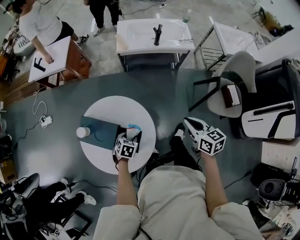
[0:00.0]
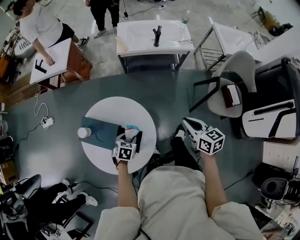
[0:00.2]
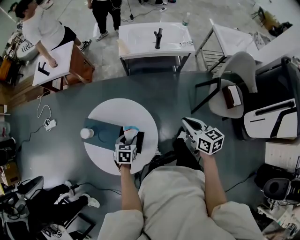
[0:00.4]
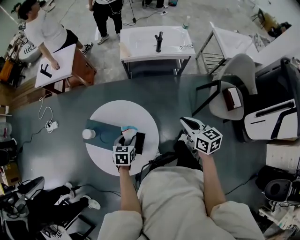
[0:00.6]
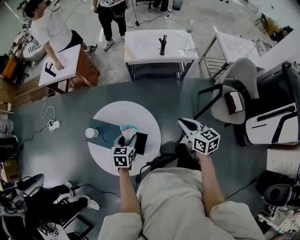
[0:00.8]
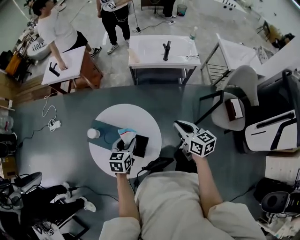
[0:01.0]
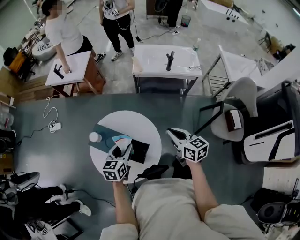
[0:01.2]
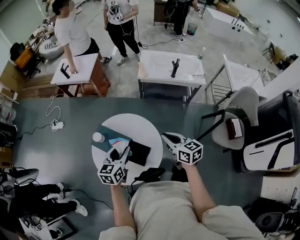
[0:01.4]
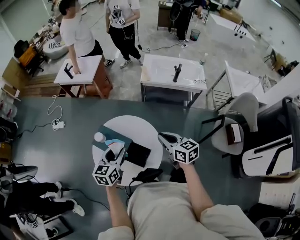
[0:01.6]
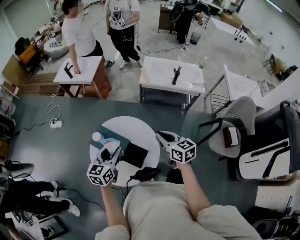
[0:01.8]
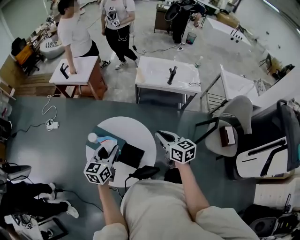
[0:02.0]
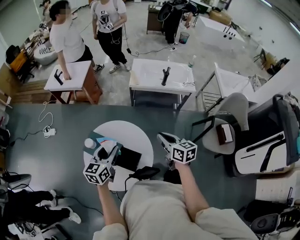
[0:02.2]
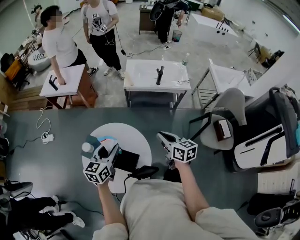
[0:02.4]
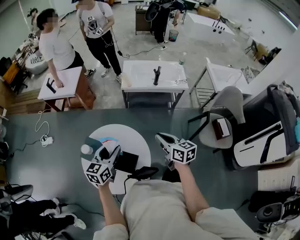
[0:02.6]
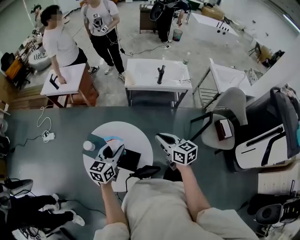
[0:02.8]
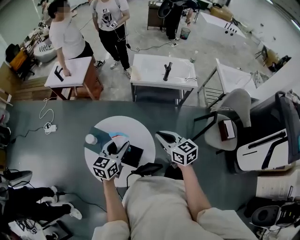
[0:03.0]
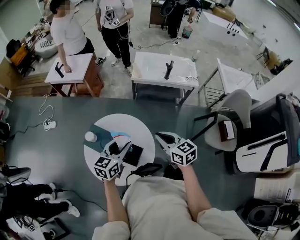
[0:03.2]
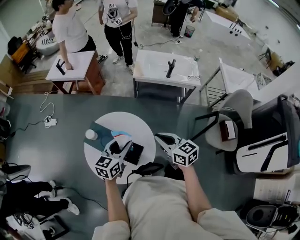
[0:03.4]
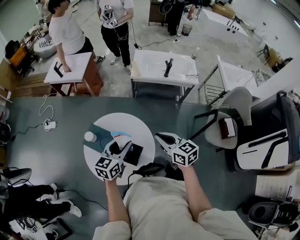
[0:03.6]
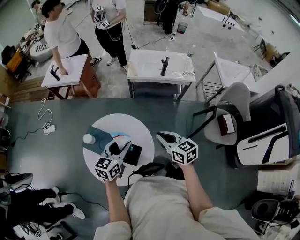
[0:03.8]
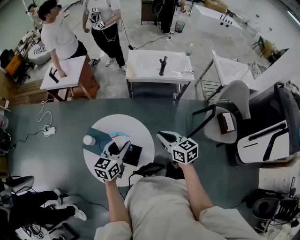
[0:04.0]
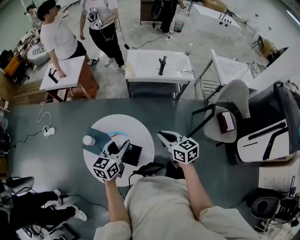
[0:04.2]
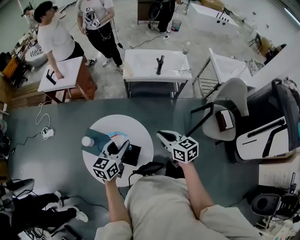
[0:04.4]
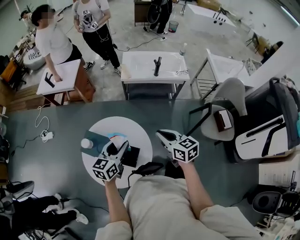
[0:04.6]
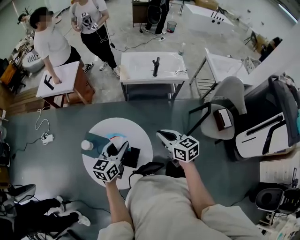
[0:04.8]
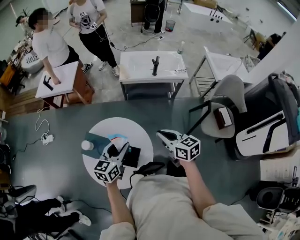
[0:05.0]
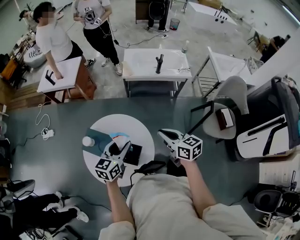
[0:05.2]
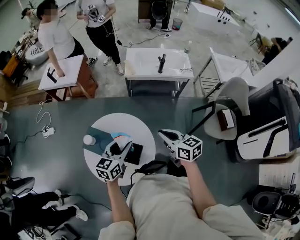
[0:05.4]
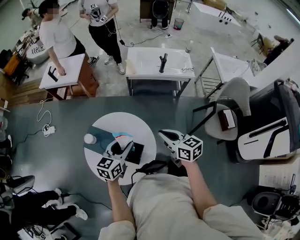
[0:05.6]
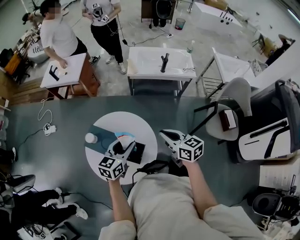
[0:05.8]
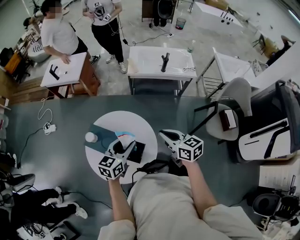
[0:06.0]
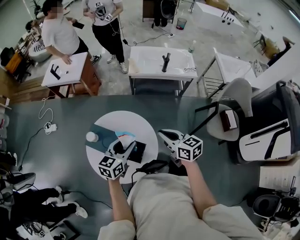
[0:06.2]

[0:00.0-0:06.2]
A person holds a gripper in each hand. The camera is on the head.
0:00.0 to 0:01.6: The right gripper goes some 20 cm to the left, and turns by approximately 20 degrees. The left gripper moves upward and to the left, about 30 cm, and tilts its fingers roughly 40 degrees upward.
0:01.6 to 0:03.2: The right gripper travels to the right and back again, approximately 10 cm each way, while the left gripper goes approximately 5 cm to the right.
0:03.2 to 0:06.2: The grippers make only small movements.

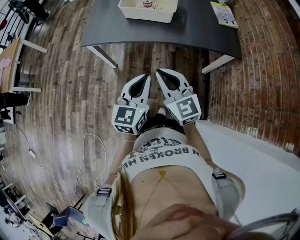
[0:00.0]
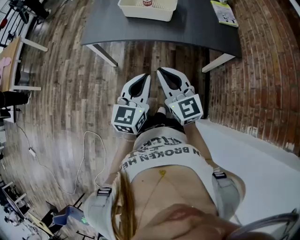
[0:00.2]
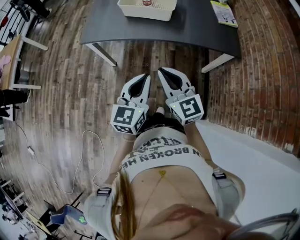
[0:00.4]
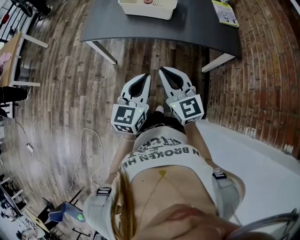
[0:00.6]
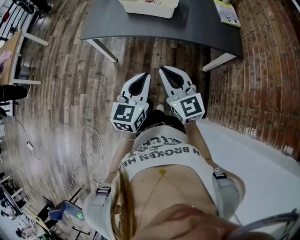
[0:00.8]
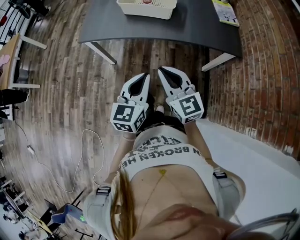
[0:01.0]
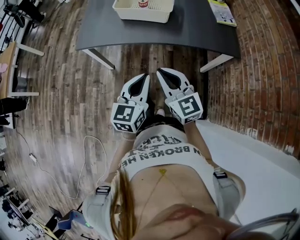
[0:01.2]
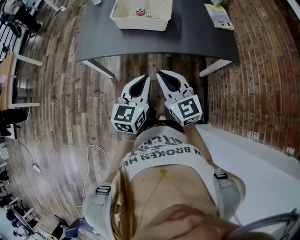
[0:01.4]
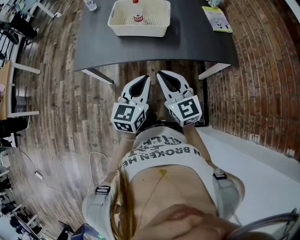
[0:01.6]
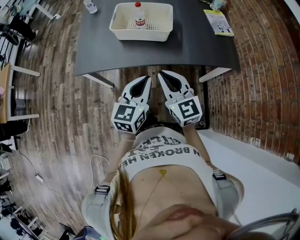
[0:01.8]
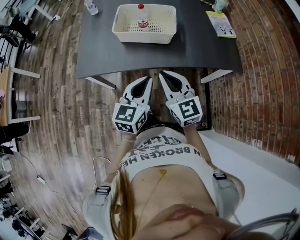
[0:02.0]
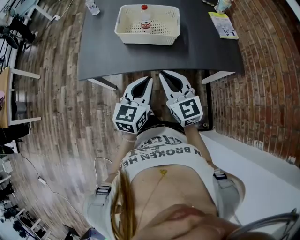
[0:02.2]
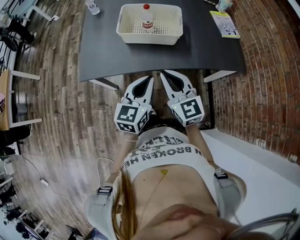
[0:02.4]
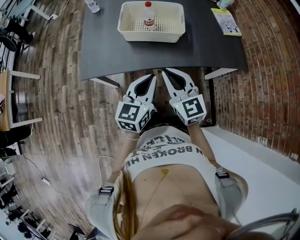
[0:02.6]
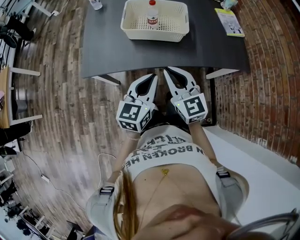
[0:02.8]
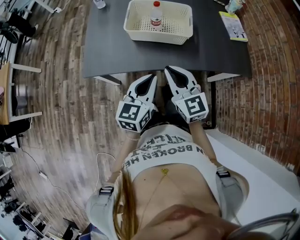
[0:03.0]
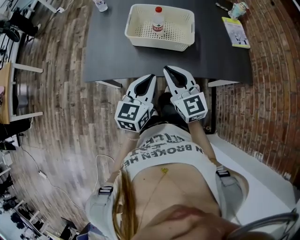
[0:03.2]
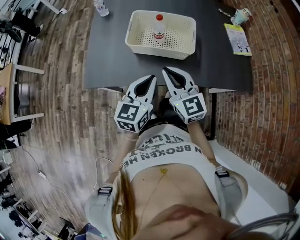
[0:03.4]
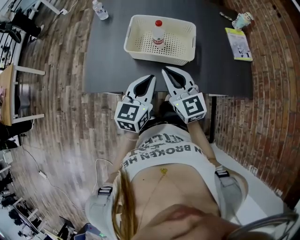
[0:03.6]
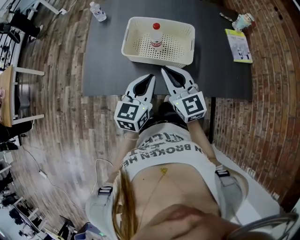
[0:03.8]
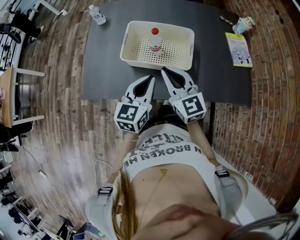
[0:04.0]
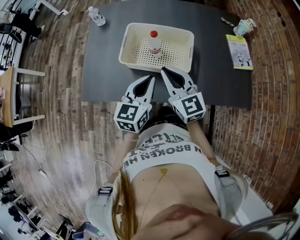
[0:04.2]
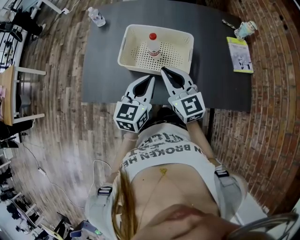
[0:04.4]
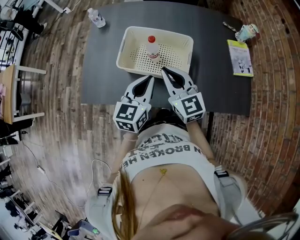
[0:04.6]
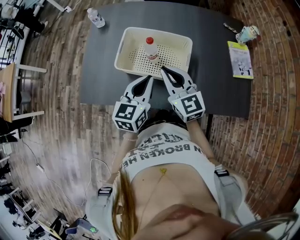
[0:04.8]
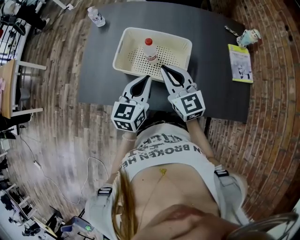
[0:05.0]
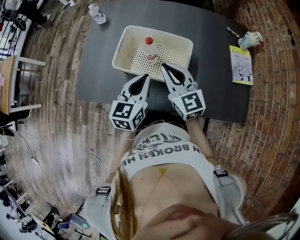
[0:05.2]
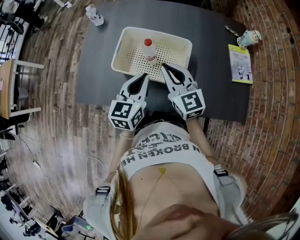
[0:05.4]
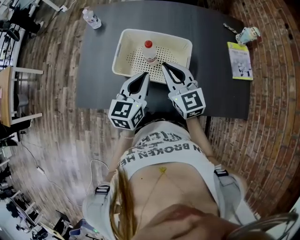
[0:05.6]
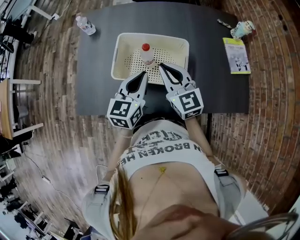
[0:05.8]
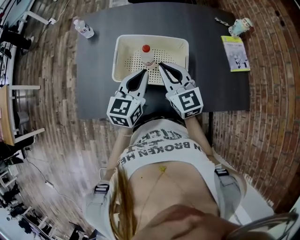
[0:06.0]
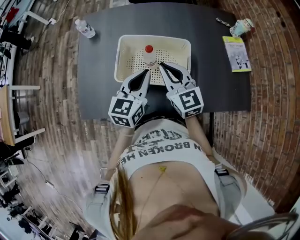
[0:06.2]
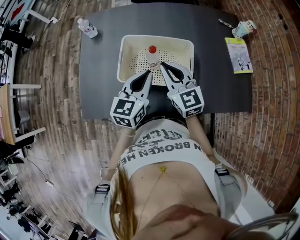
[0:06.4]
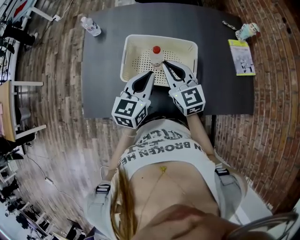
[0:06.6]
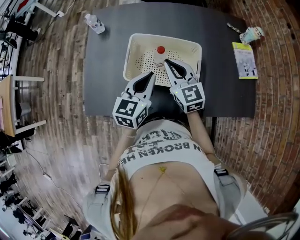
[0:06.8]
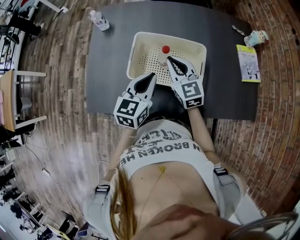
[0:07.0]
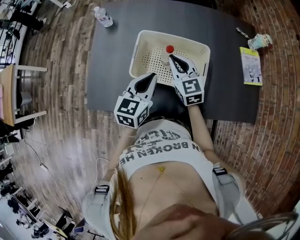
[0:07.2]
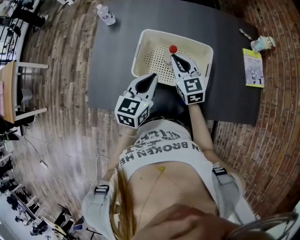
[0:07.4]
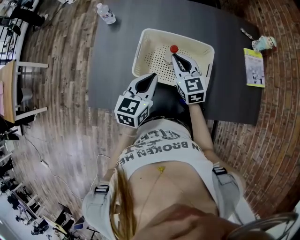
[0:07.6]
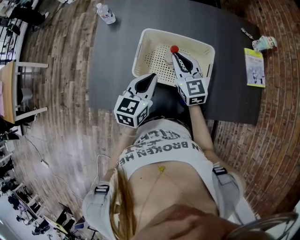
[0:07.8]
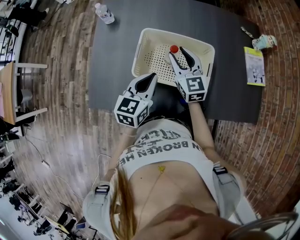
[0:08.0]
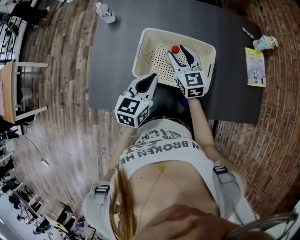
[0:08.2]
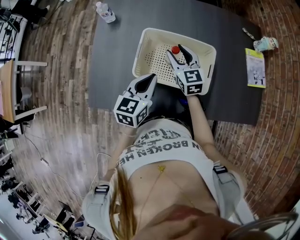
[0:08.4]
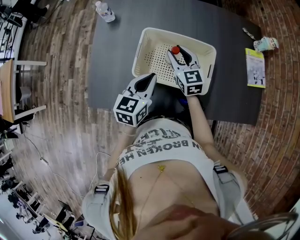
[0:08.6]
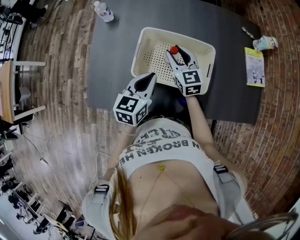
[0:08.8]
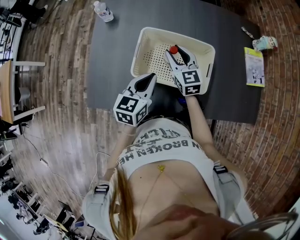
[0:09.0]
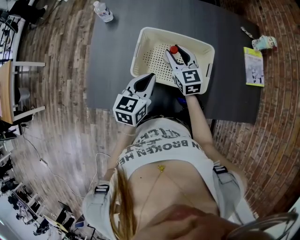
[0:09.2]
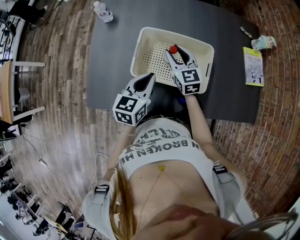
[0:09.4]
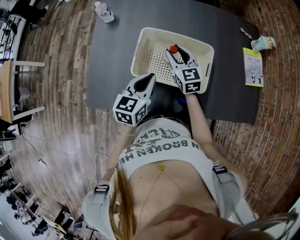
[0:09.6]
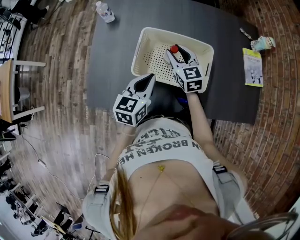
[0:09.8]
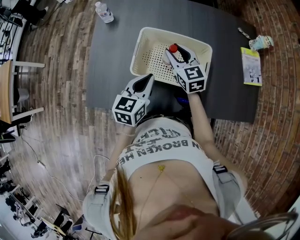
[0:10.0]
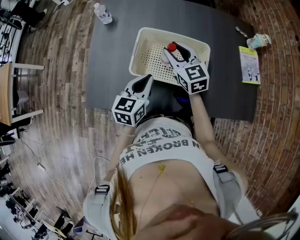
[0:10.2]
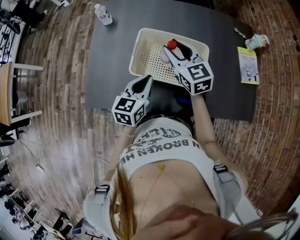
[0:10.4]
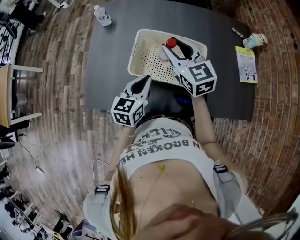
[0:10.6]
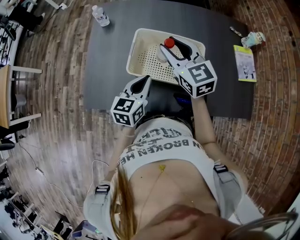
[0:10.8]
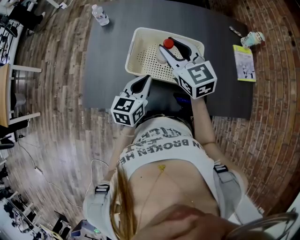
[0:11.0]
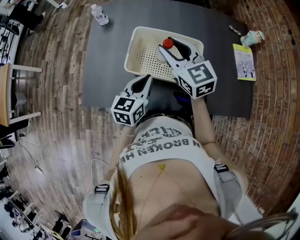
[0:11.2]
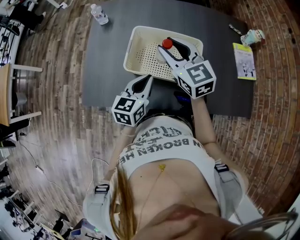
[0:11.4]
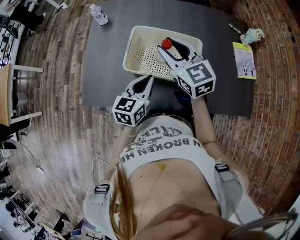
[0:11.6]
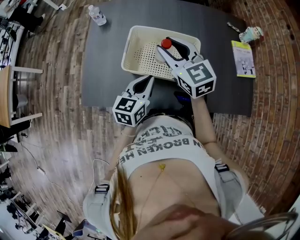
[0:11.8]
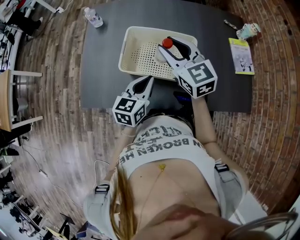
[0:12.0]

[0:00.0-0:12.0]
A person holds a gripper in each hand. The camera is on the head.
0:00.0 to 0:01.6: Both grippers travel together forward, about 15 cm.
0:01.6 to 0:03.0: Both grippers move forward and to the left, approximately 15 cm.
0:03.0 to 0:04.4: Both grippers move forward, approximately 20 cm.
0:04.4 to 0:06.0: The grippers both shift forward by approximately 10 cm.
0:06.0 to 0:07.6: The left gripper travels to the left by some 5 cm, while the right gripper heads downward and forward, covering approximately 10 cm.
0:07.6 to 0:09.0: The right gripper opens its fingers.
0:09.0 to 0:10.4: The right gripper heads upward, covering approximately 10 cm.
0:10.4 to 0:12.0: The right gripper changes place by roughly 10 cm. The left gripper heads to the right, covering approximately 5 cm.

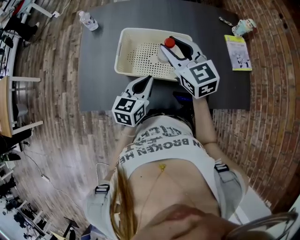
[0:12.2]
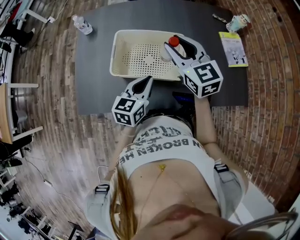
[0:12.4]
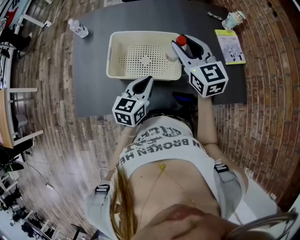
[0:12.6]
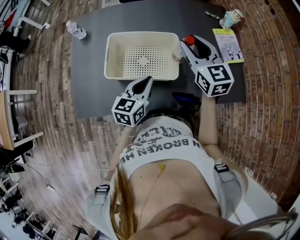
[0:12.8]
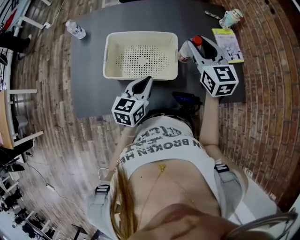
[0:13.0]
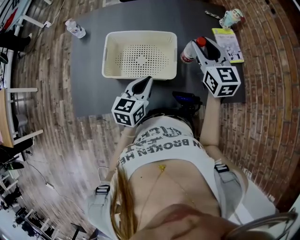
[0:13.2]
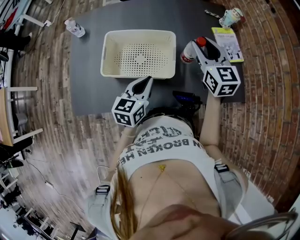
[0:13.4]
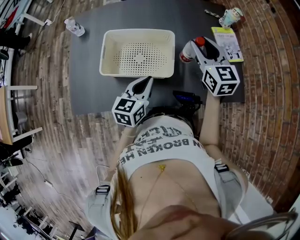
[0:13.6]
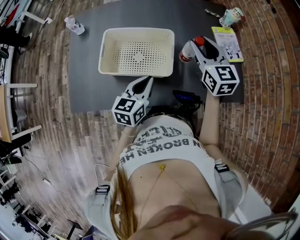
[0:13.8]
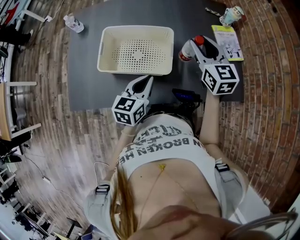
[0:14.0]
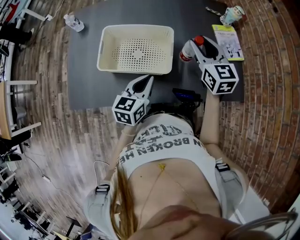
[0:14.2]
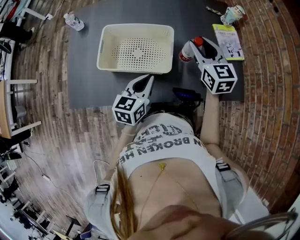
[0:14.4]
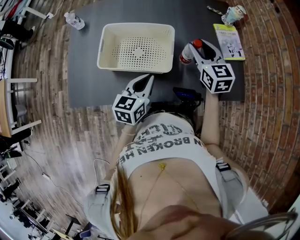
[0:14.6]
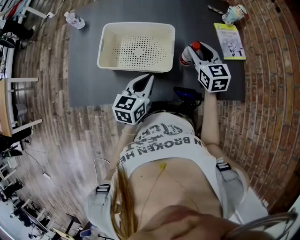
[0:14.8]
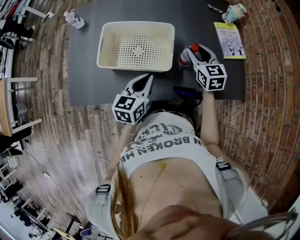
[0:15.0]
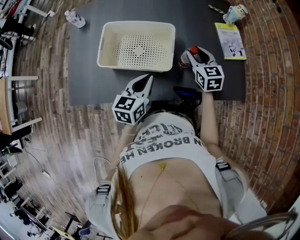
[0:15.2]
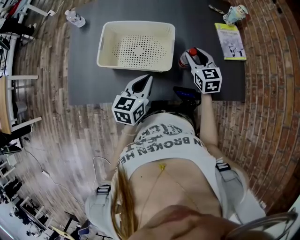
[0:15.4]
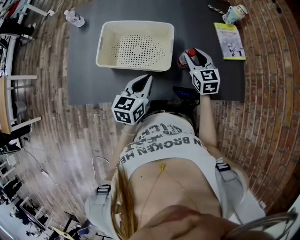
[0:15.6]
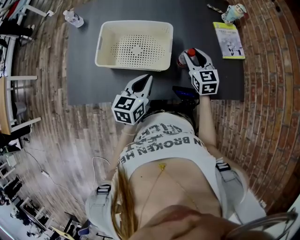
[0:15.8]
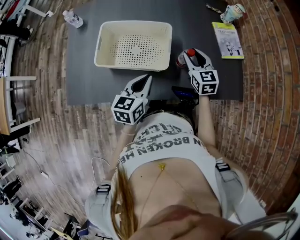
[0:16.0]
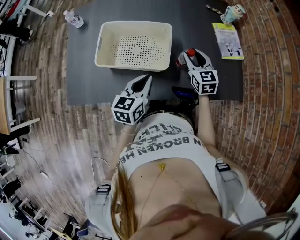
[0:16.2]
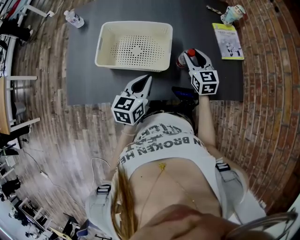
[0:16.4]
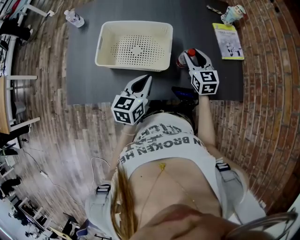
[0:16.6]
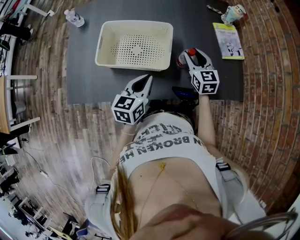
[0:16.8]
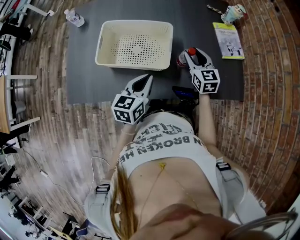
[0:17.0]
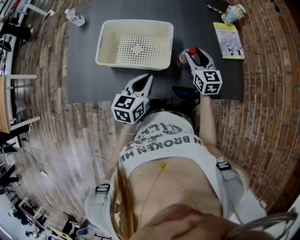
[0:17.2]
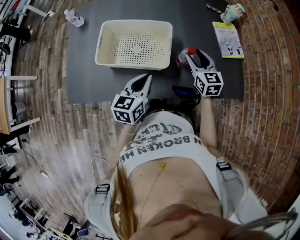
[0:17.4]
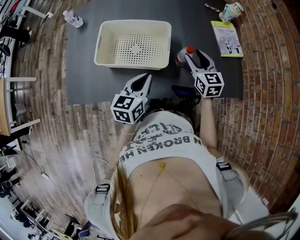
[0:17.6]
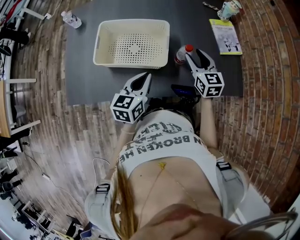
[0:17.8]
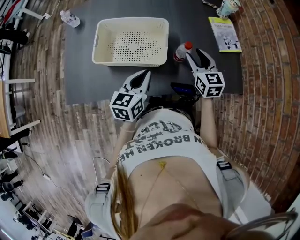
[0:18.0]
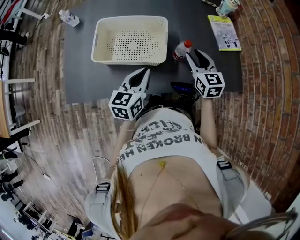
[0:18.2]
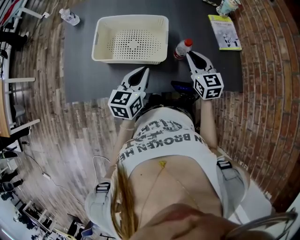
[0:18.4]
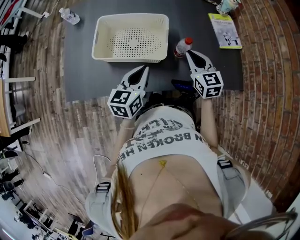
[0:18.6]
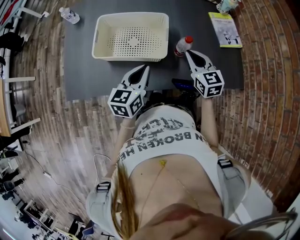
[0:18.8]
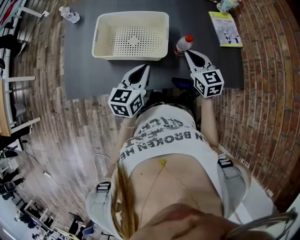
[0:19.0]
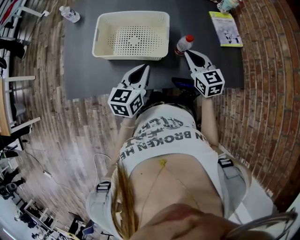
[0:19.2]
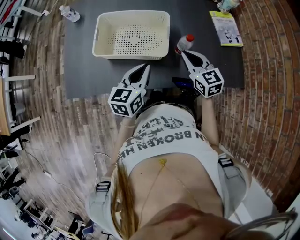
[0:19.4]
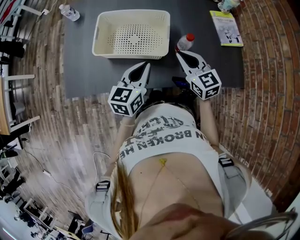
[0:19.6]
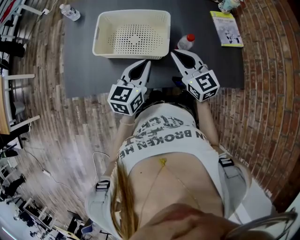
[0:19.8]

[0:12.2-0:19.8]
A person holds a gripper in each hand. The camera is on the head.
0:12.2 to 0:13.8: The right gripper shifts about 20 cm to the right, while the left gripper is displaced to the right by about 10 cm.
0:13.8 to 0:15.2: The right gripper travels downward by approximately 15 cm.
0:15.2 to 0:16.8: The grippers make only small movements.
0:16.8 to 0:18.2: The right gripper shifts by about 5 cm.
0:18.2 to 0:19.8: The right gripper is displaced to the left by about 10 cm, rotates approximately 20 degrees, and closes its fingers.
